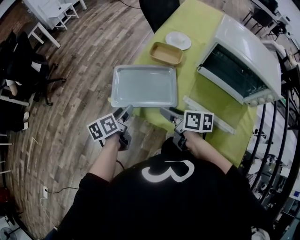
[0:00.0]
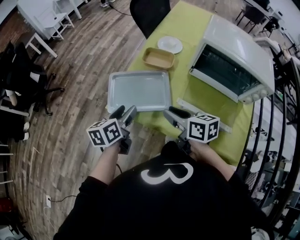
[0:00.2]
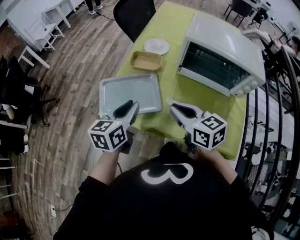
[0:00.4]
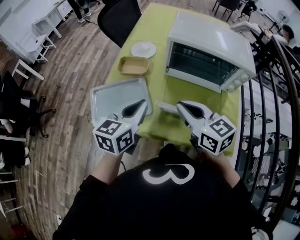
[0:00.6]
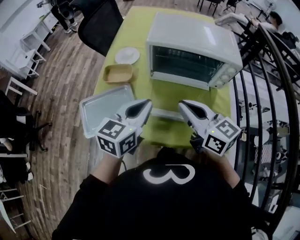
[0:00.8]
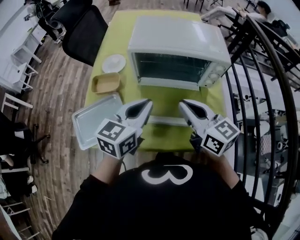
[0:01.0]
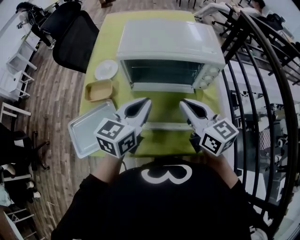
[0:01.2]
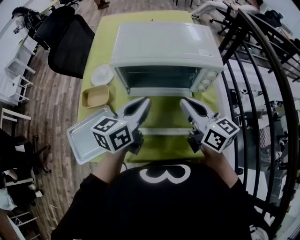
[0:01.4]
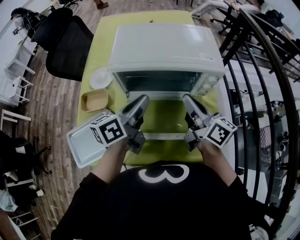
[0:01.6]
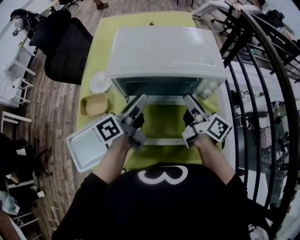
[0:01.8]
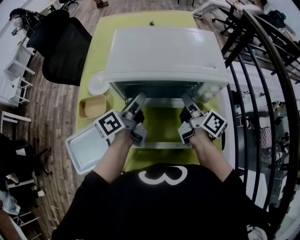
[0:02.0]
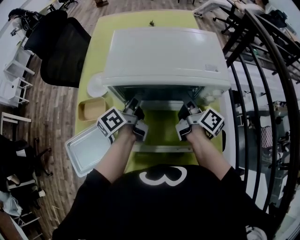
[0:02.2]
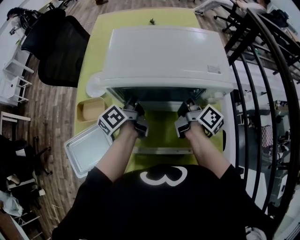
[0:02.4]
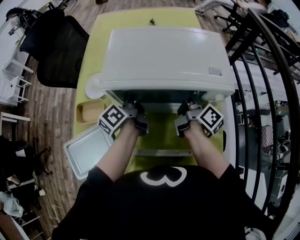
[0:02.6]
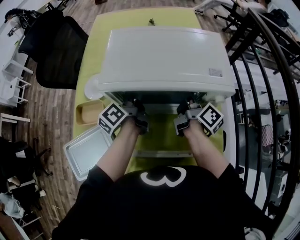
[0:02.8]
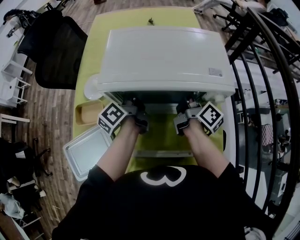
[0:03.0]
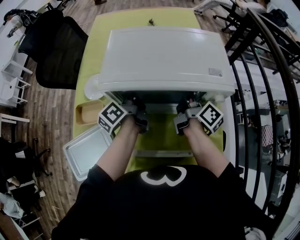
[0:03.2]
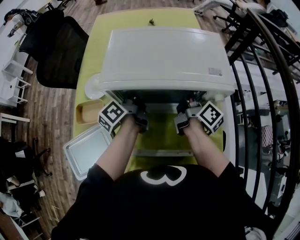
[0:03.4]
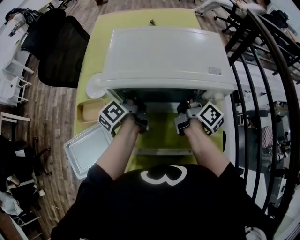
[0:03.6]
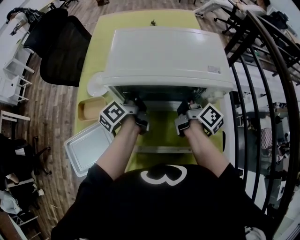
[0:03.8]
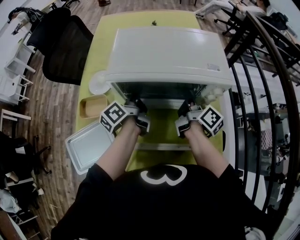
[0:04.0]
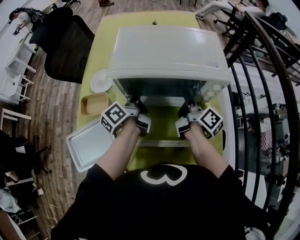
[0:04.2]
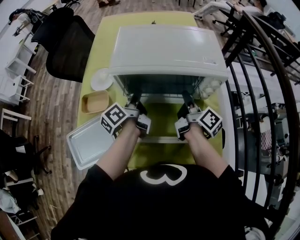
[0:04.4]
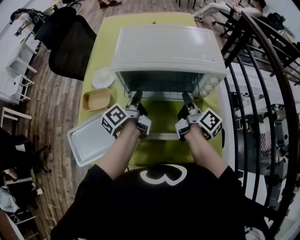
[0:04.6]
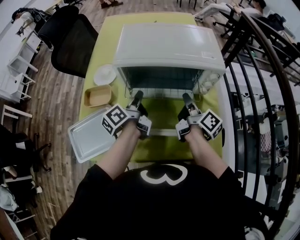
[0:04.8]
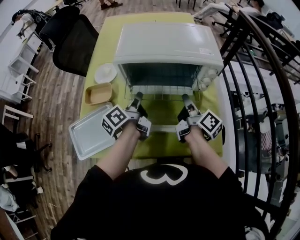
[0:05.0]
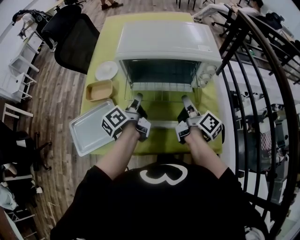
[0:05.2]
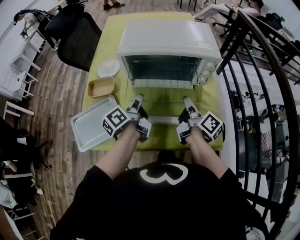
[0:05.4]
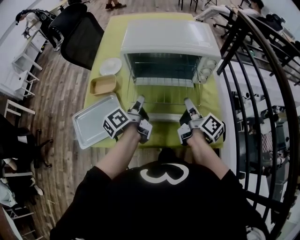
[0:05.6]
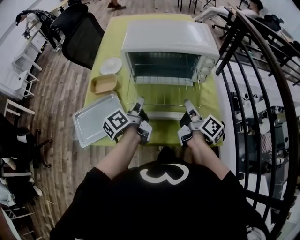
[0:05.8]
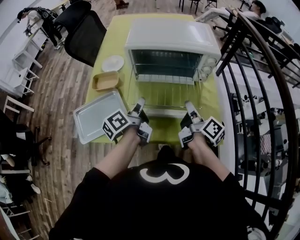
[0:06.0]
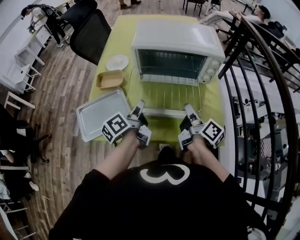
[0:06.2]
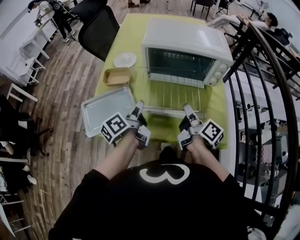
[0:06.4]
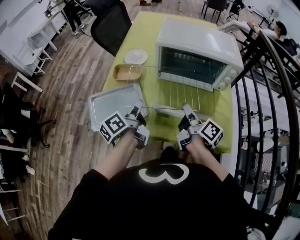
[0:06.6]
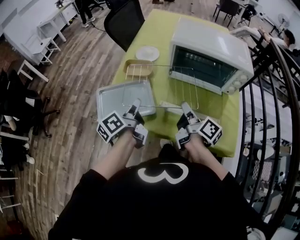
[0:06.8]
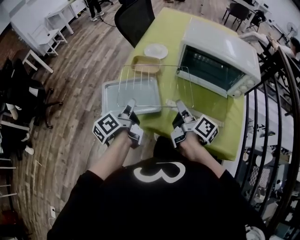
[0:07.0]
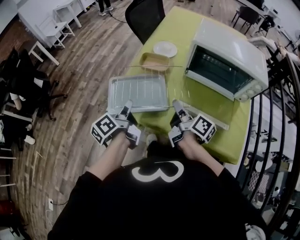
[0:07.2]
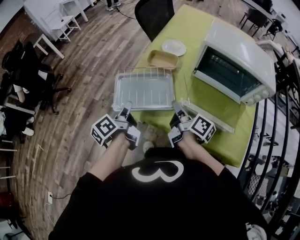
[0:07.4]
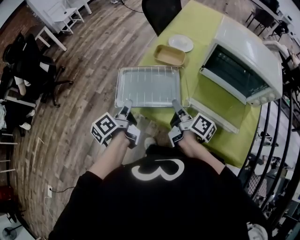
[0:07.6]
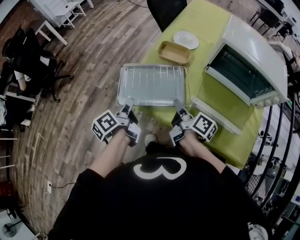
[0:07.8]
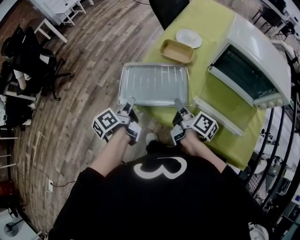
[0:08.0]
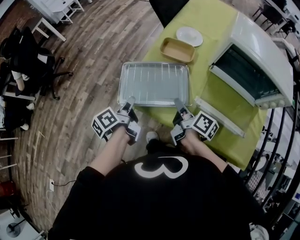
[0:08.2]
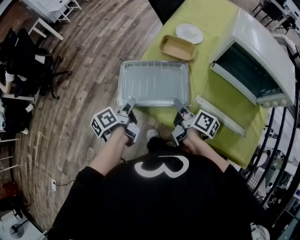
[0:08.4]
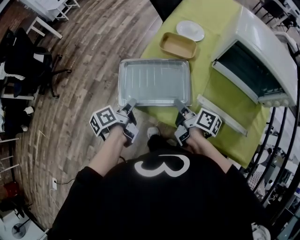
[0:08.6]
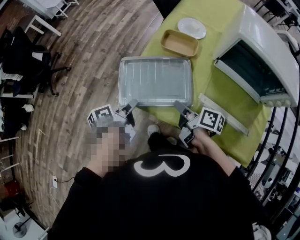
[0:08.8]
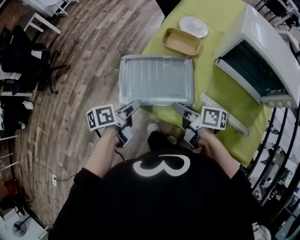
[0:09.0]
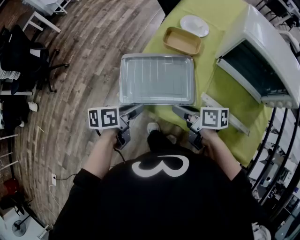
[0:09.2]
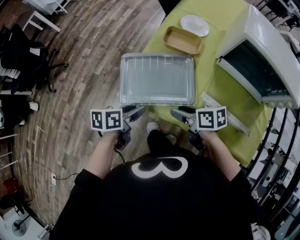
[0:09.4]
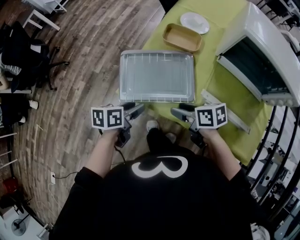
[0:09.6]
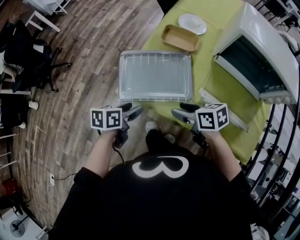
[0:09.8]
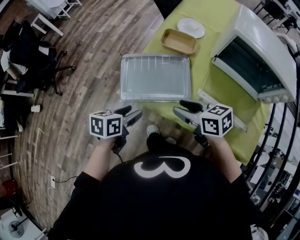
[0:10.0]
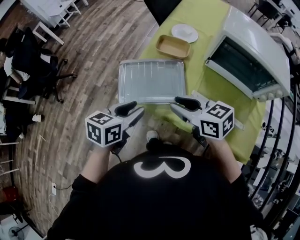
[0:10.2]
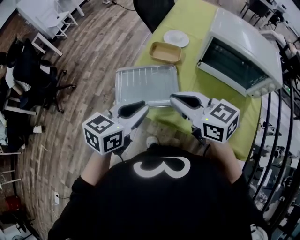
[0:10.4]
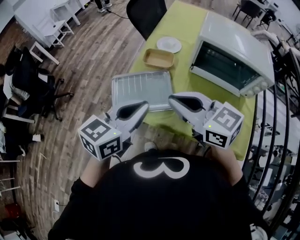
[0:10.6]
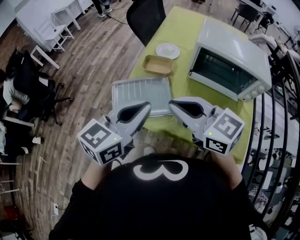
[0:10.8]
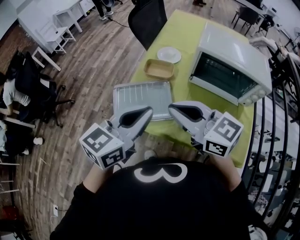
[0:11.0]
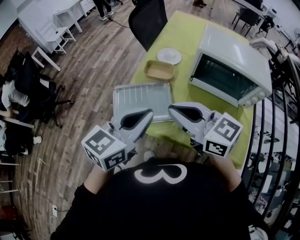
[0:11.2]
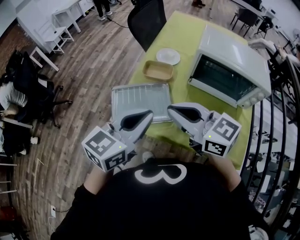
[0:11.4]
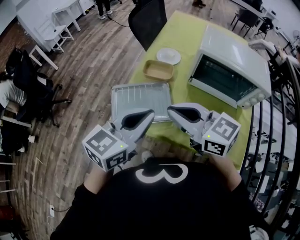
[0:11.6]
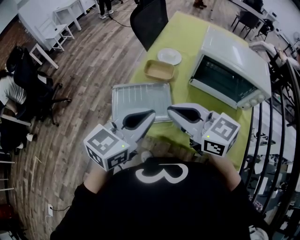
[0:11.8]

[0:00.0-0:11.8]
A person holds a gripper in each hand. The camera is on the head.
0:00.0 to 0:01.4: The left gripper changes place by roughly 50 cm, turns by about 60 degrees, and closes; the right gripper changes place by about 40 cm, turns by about 50 degrees, and closes up.
0:01.4 to 0:03.0: The two grippers go about 20 cm forward and downward. The right gripper twists about 40 degrees clockwise, seen from behind, and opens, then closes again. Meanwhile the left gripper rotates around the line of its fingers by approximately 40 degrees, counterclockwise from behind, and opens, then closes again.
0:03.0 to 0:04.4: Both grippers travel together backward, roughly 10 cm.
0:04.4 to 0:06.0: Both grippers move backward, roughly 20 cm.
0:06.0 to 0:07.4: The left gripper ends up roughly 30 cm from where it was, and turns by about 30 degrees. Meanwhile the right gripper changes place by about 30 cm, and changes its angle by about 30 degrees.
0:07.4 to 0:08.8: The left gripper heads downward, covering about 10 cm, and swivels roughly 20 degrees. Meanwhile the right gripper is displaced downward and to the left by roughly 10 cm, and turns by some 20 degrees.
0:08.8 to 0:10.4: The left gripper travels upward and to the right by some 20 cm, rotates around the line of its fingers by about 60 degrees, clockwise from behind, and opens, then closes again, while the right gripper moves upward, roughly 20 cm, twists about 60 degrees counterclockwise, seen from behind, and opens, then closes once more.
0:10.4 to 0:11.8: The grippers both shift upward by approximately 10 cm.

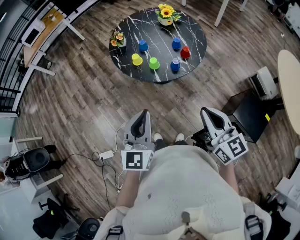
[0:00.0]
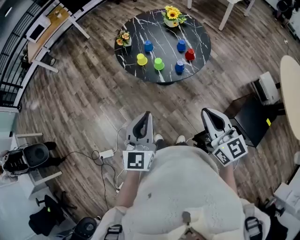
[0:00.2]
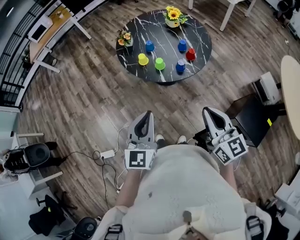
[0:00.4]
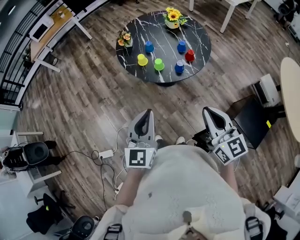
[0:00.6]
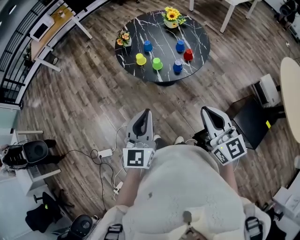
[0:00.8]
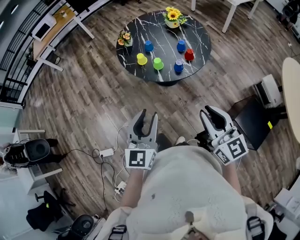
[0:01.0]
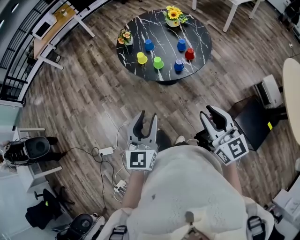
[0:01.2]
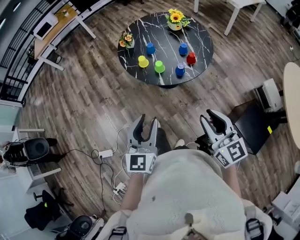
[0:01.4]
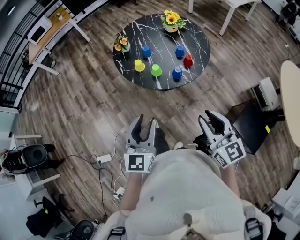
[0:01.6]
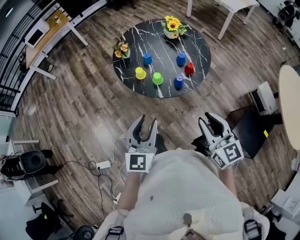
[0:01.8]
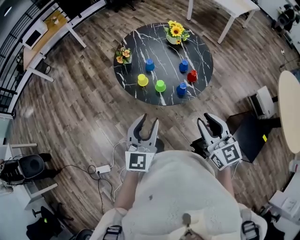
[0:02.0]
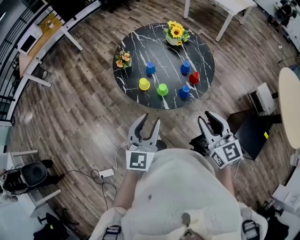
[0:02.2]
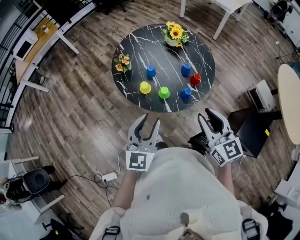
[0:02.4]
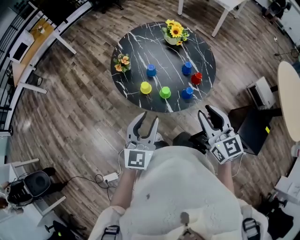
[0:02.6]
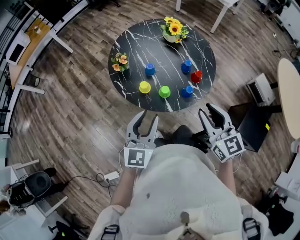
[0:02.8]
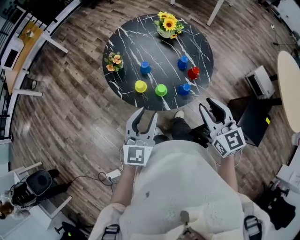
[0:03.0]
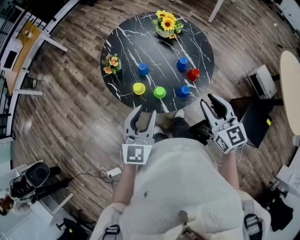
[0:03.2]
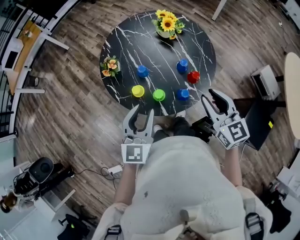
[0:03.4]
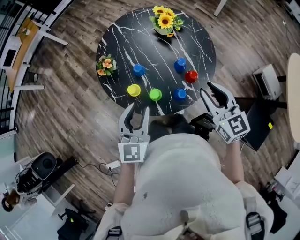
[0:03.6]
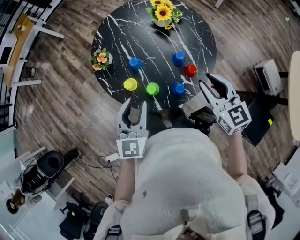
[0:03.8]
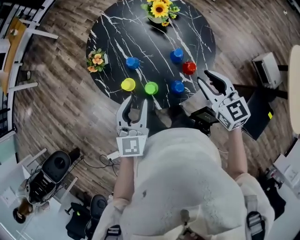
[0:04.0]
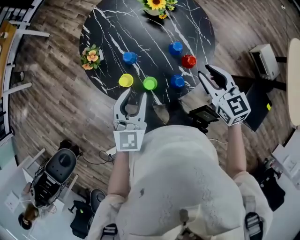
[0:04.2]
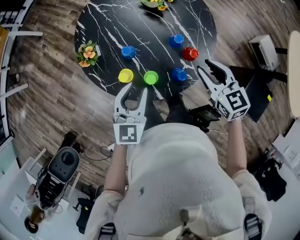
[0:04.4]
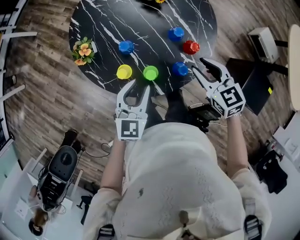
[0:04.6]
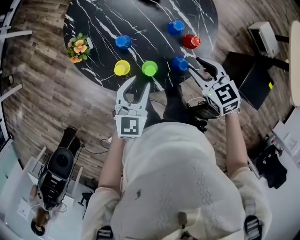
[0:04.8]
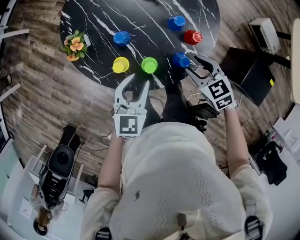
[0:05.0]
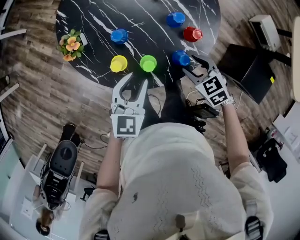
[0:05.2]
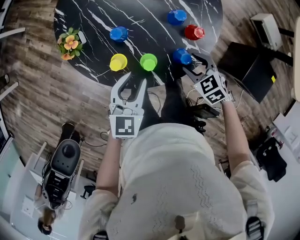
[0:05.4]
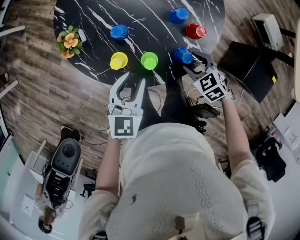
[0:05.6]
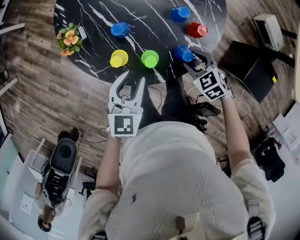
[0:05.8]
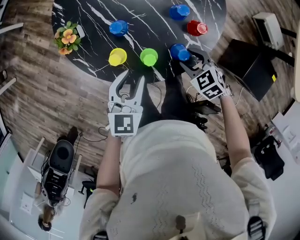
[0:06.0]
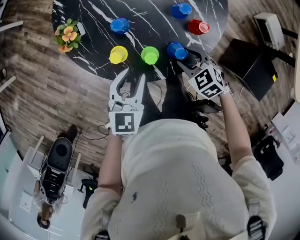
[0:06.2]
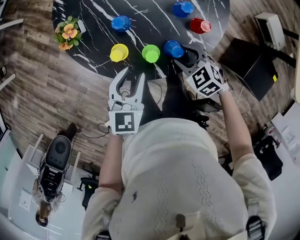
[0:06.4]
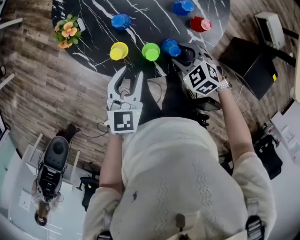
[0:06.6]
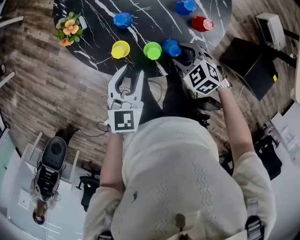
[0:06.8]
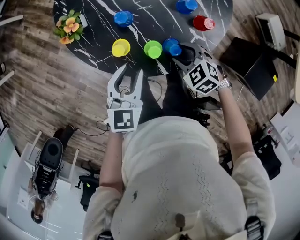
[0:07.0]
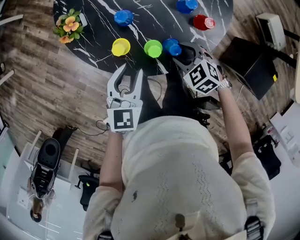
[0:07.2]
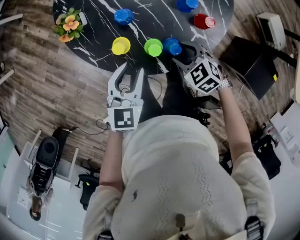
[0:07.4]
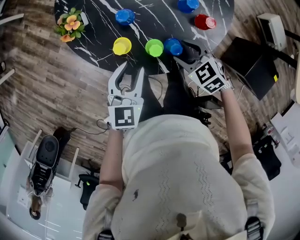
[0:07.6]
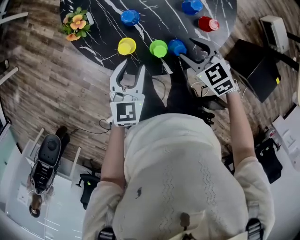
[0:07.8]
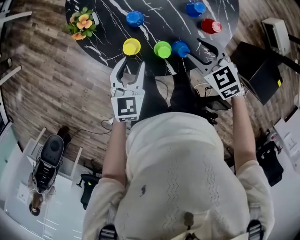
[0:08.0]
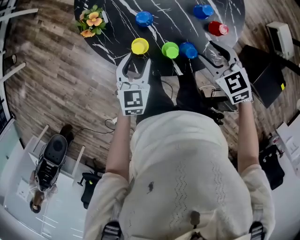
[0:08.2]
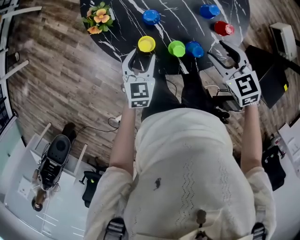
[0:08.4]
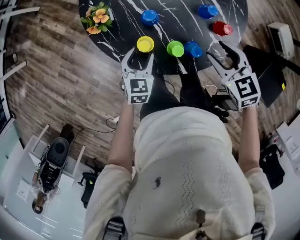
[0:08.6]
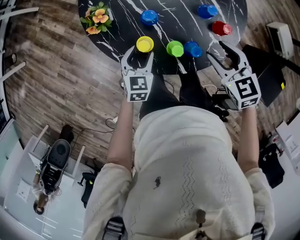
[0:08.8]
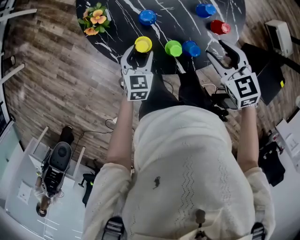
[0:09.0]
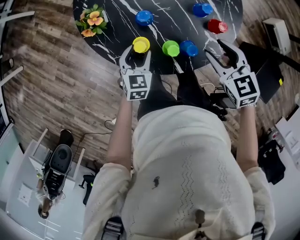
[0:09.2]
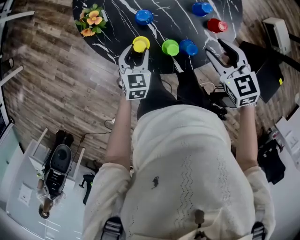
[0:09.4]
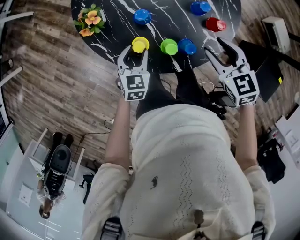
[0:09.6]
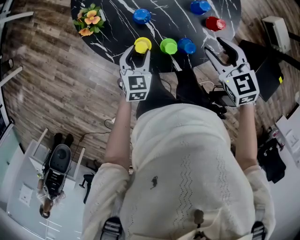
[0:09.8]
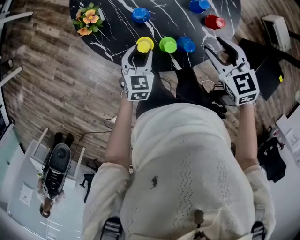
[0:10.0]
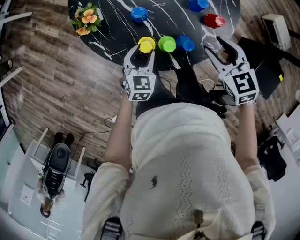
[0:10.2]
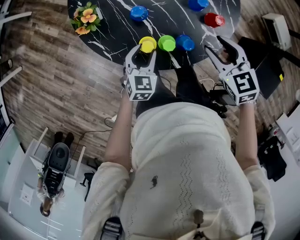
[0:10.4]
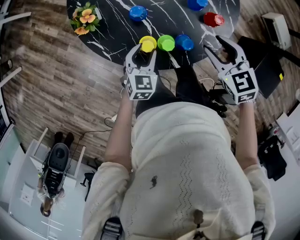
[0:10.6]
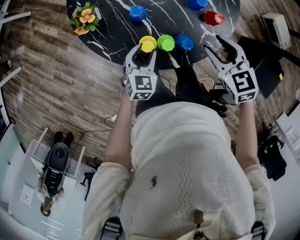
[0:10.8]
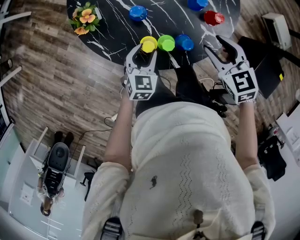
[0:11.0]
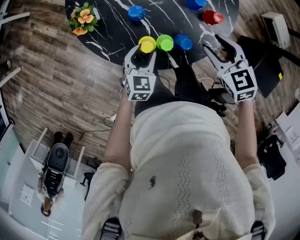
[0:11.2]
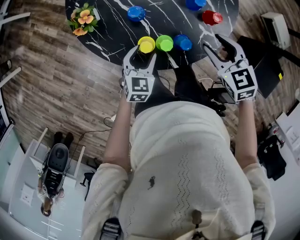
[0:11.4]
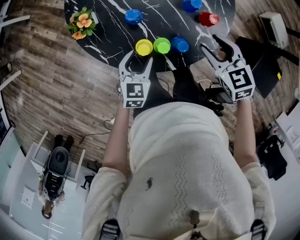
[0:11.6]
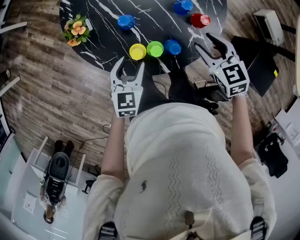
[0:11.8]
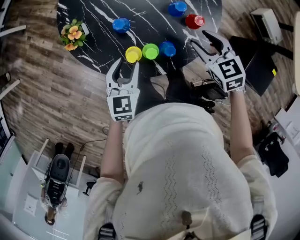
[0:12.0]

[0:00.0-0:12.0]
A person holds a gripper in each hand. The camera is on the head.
0:00.0 to 0:01.6: The left gripper opens its fingers. The right gripper opens up.
0:01.6 to 0:03.0: Both grippers travel together forward, approximately 25 cm.
0:03.0 to 0:04.4: The right gripper is displaced forward, downward and to the right by about 25 cm; the left gripper heads forward and downward, covering approximately 20 cm.
0:04.4 to 0:06.0: The left gripper shifts some 10 cm downward. Meanwhile the right gripper goes about 20 cm downward, and turns by some 30 degrees.
0:06.0 to 0:07.6: The right gripper moves to the left, about 5 cm.
0:07.6 to 0:09.0: The right gripper travels upward by approximately 10 cm. The left gripper goes roughly 10 cm downward and to the left.
0:09.0 to 0:10.4: The left gripper changes place by some 5 cm.
0:10.4 to 0:12.0: The right gripper changes place by about 5 cm. Meanwhile the left gripper is displaced upward by some 10 cm.
